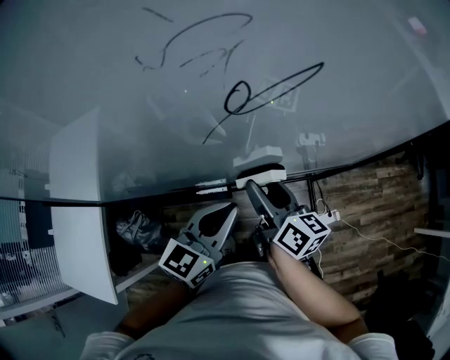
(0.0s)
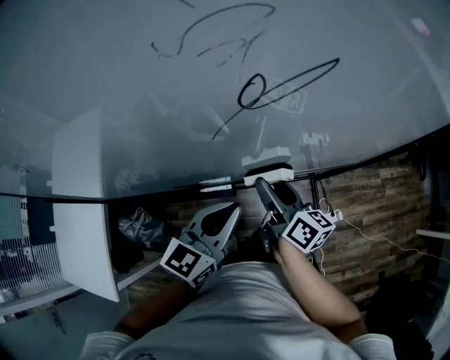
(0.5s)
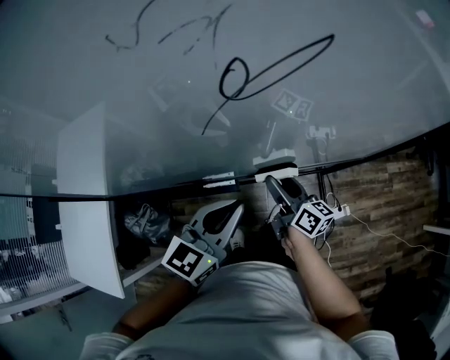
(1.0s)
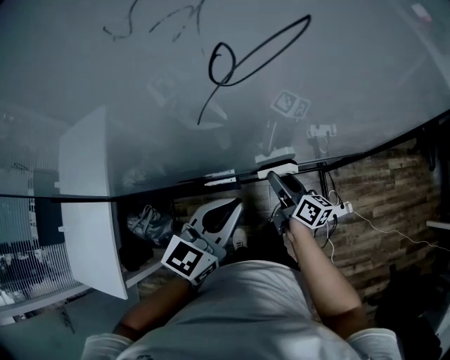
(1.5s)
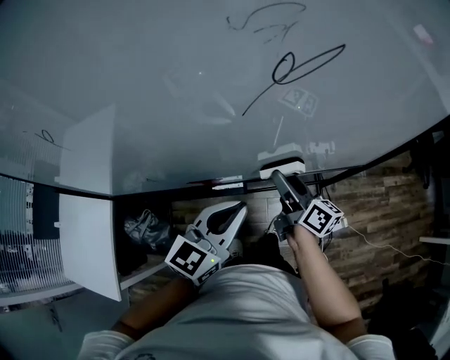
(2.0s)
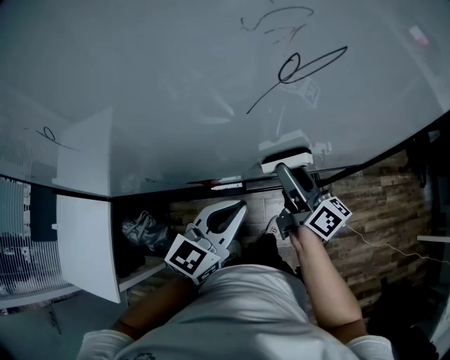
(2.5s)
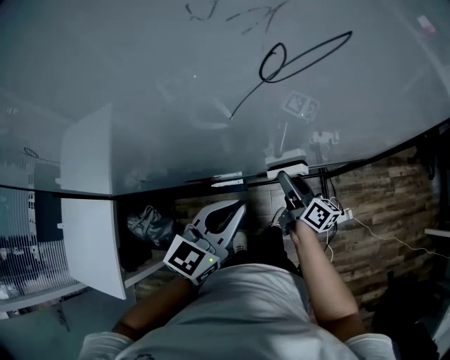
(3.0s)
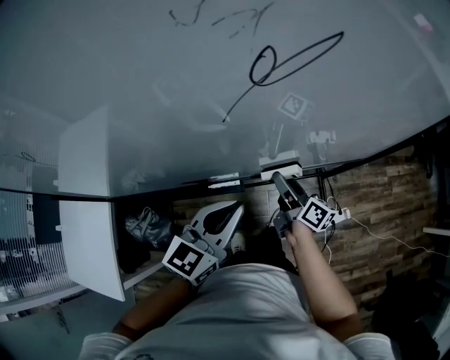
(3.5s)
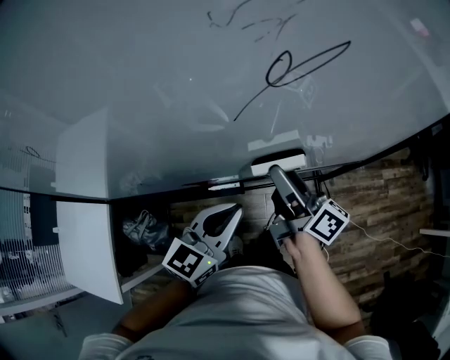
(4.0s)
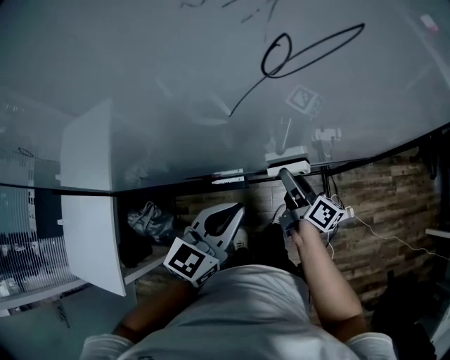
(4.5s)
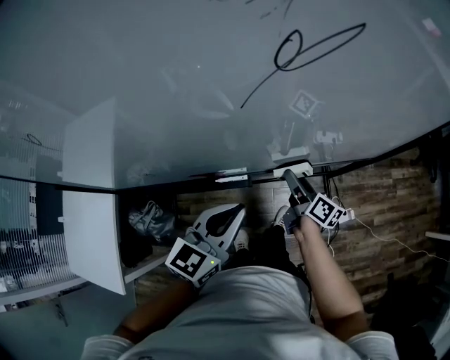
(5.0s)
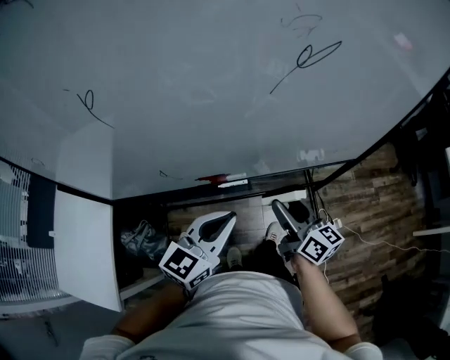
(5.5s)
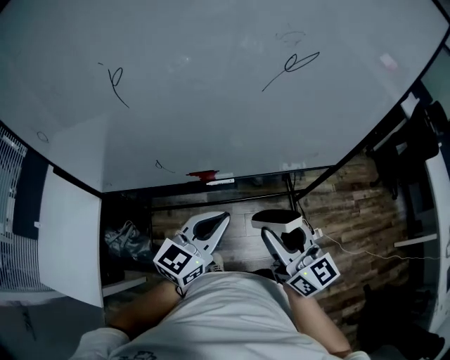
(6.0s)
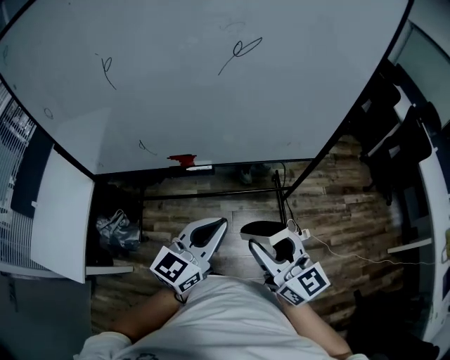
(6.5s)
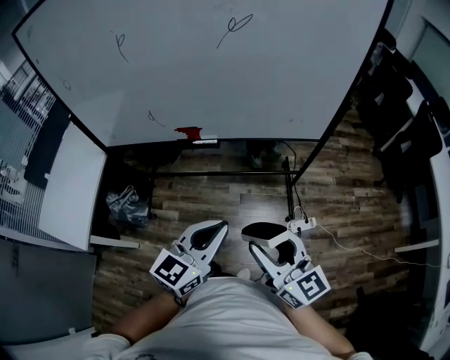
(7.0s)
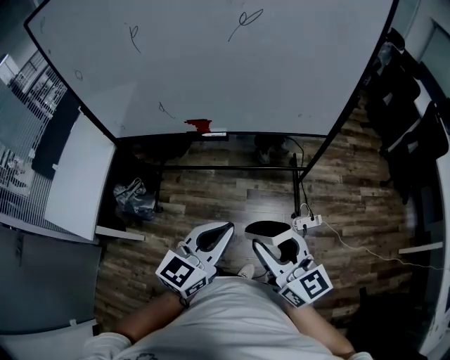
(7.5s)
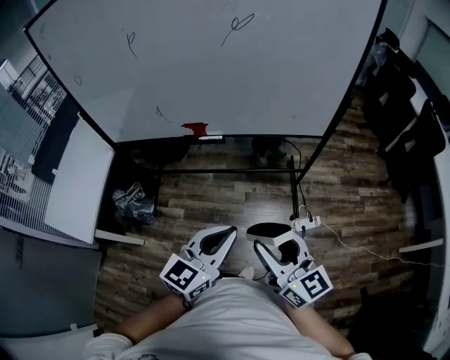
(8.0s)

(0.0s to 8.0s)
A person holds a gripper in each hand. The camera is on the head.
0.0s - 2.0s: The right gripper travels downward and back again, approximately 15 cm each way.
2.0s - 4.0s: The right gripper goes up and down, some 15 cm each way, reversing 2 times.
4.0s - 6.0s: The right gripper travels backward by approximately 25 cm, and rotates around the line of its fingers by roughly 40 degrees, counterclockwise from behind; the left gripper is displaced backward by some 15 cm.
6.0s - 8.0s: Both grippers move backward and to the right, approximately 30 cm.

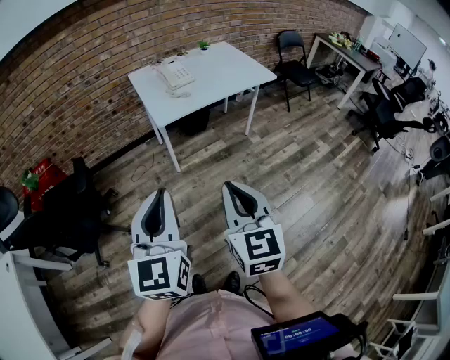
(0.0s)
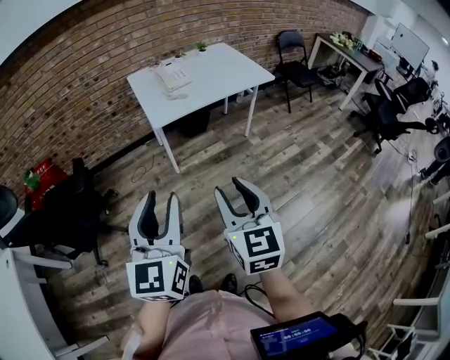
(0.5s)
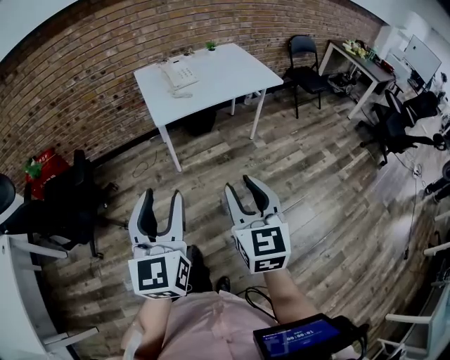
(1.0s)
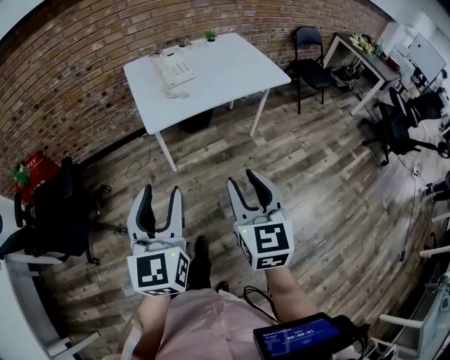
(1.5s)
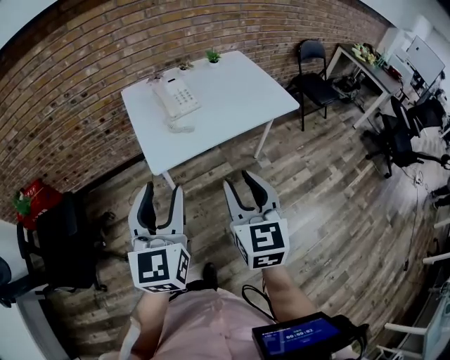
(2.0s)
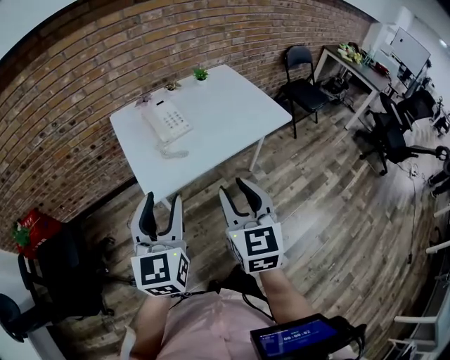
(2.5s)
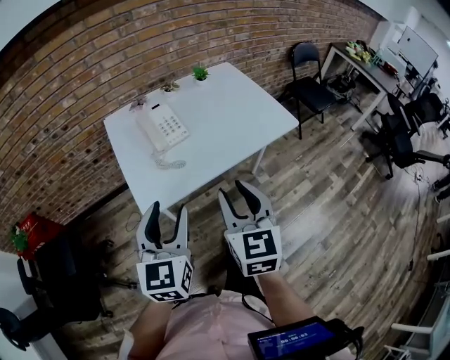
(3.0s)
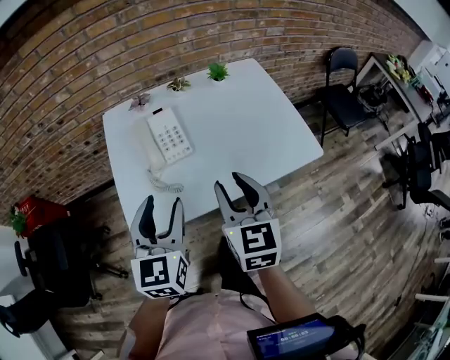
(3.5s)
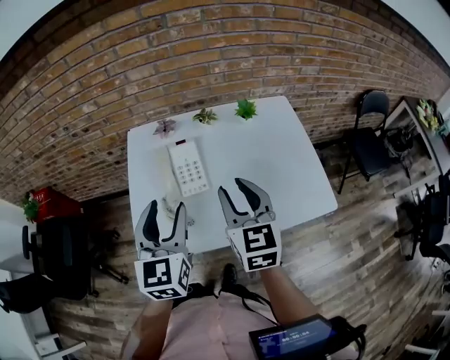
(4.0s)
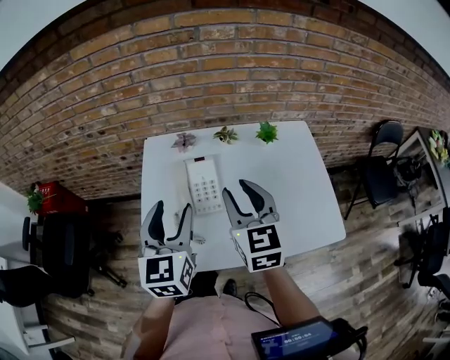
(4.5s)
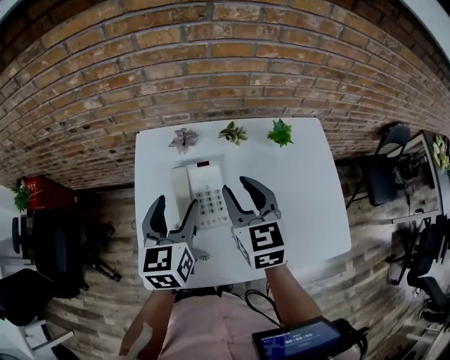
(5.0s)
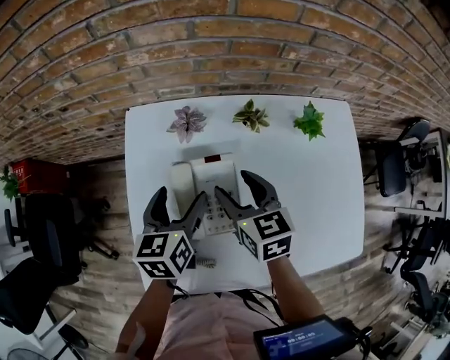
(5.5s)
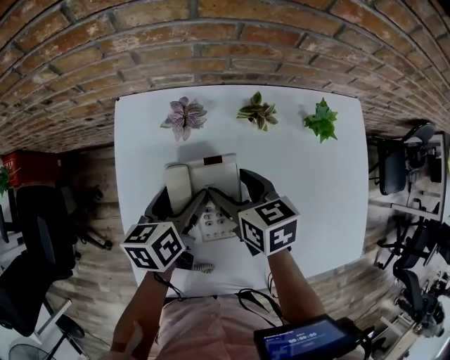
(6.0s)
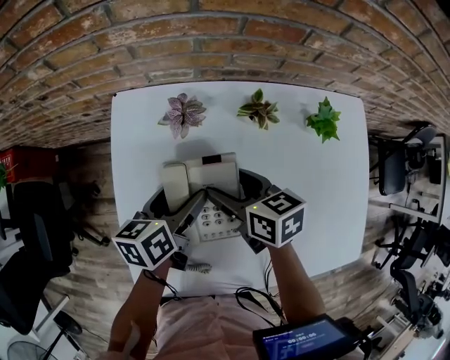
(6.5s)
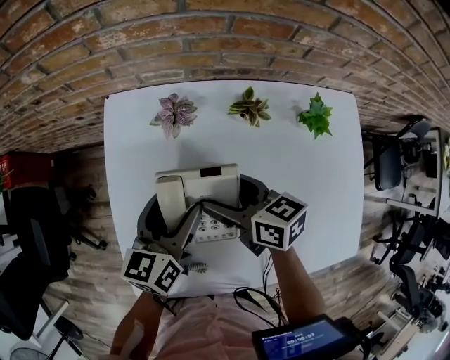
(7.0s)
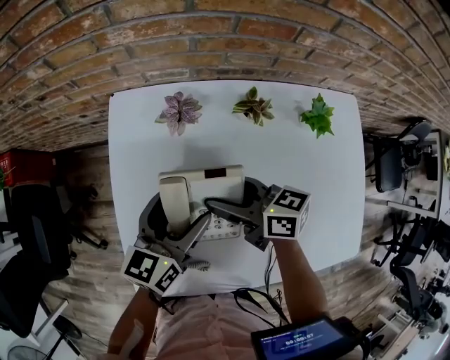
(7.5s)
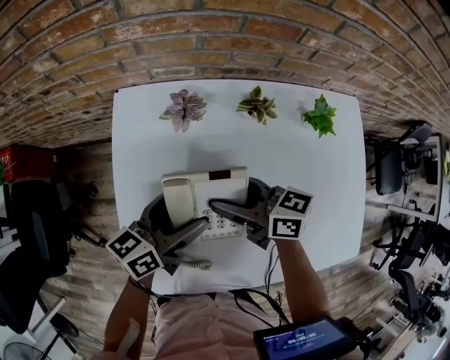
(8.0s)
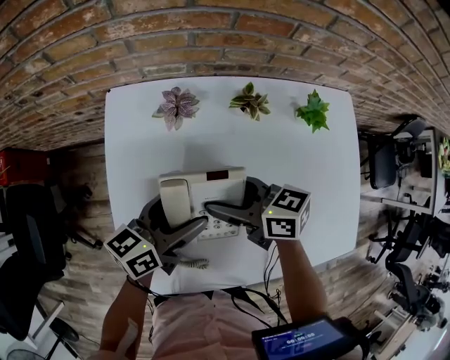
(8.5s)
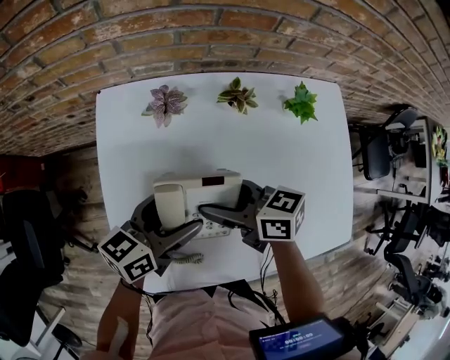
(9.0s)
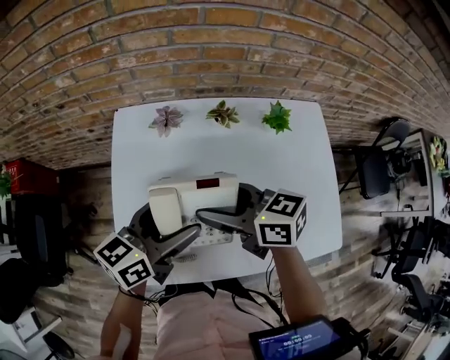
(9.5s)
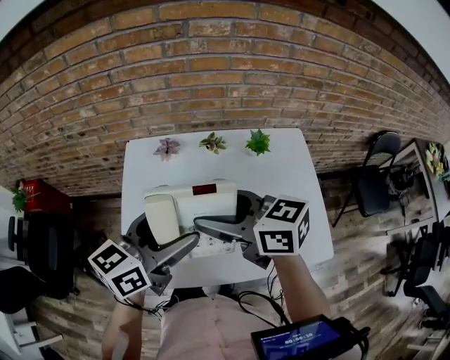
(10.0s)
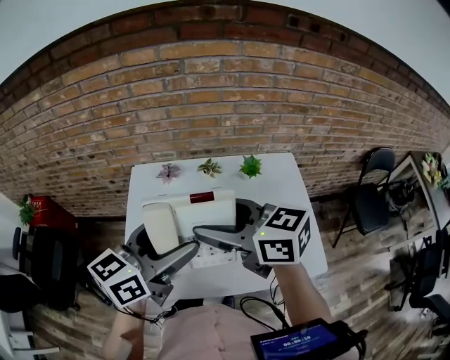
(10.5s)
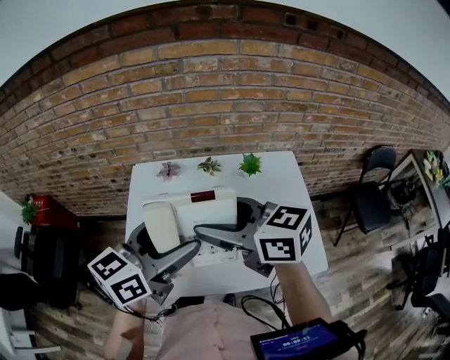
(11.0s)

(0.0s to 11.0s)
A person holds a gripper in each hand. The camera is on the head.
0.0s - 2.0s: Both grippers move forward, approximately 30 cm. The right gripper opens its fingers. The left gripper opens.
2.0s - 3.5s: Both grippers travel together forward, roughly 30 cm.
3.5s - 5.5s: The two grippers go roughly 35 cm forward and downward. The right gripper swivels some 30 degrees, and opens its fingers; the left gripper swivels roughly 30 degrees, and opens.
5.5s - 7.5s: The right gripper swivels approximately 40 degrees.
7.5s - 9.0s: The left gripper rotates approximately 20 degrees.
9.0s - 11.0s: The right gripper goes approximately 30 cm upward, and rotates some 30 degrees. Meanwhile the left gripper is displaced upward and backward by approximately 30 cm, and swivels some 20 degrees.

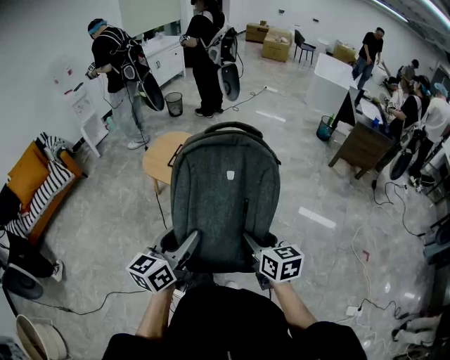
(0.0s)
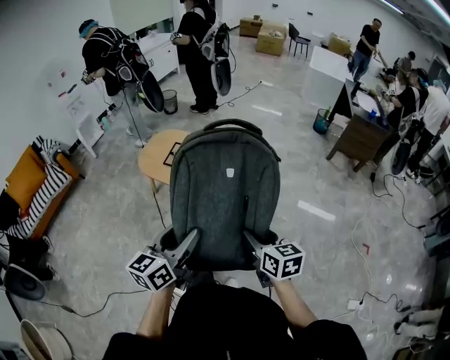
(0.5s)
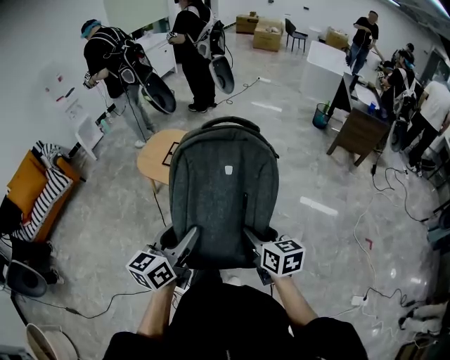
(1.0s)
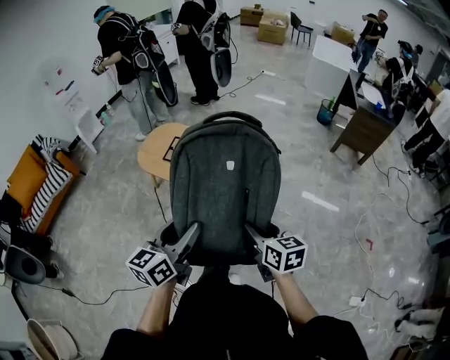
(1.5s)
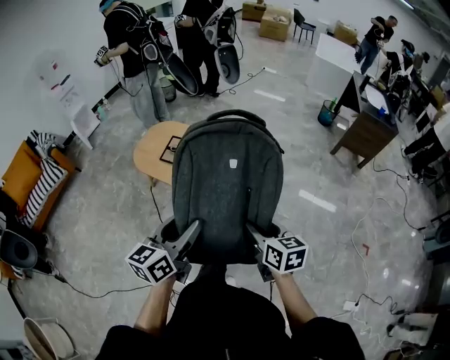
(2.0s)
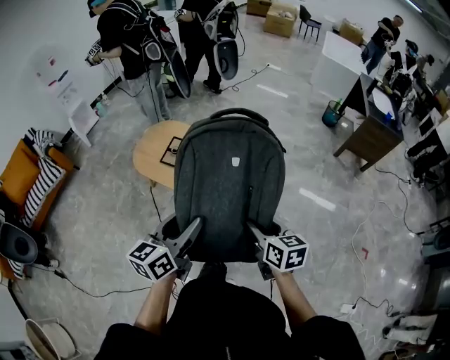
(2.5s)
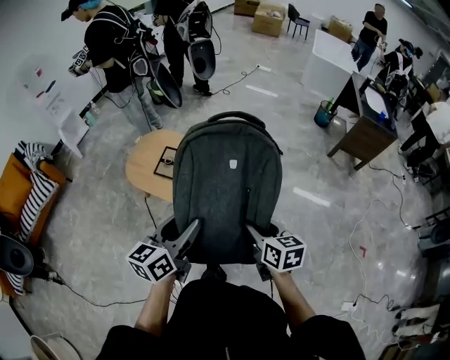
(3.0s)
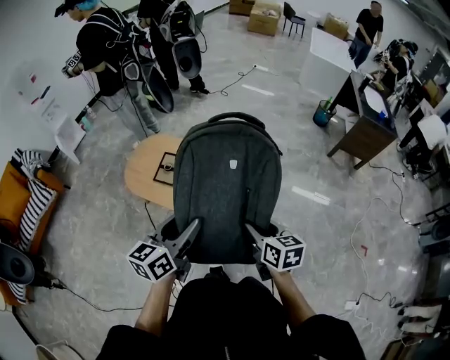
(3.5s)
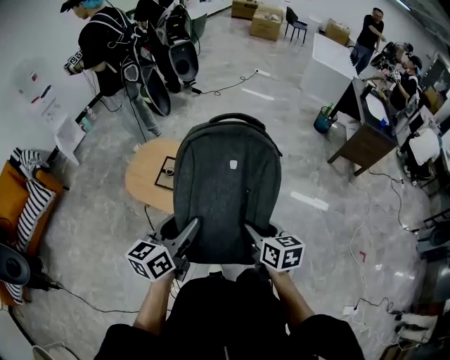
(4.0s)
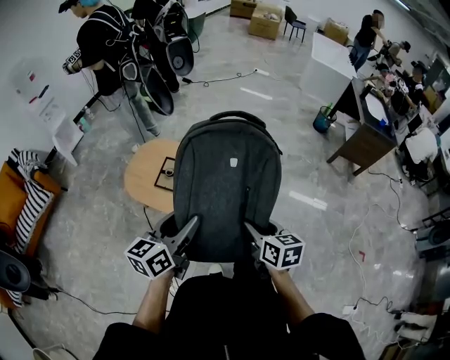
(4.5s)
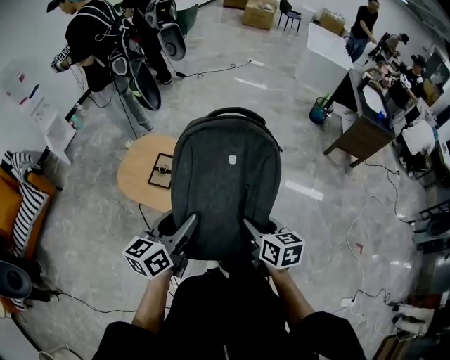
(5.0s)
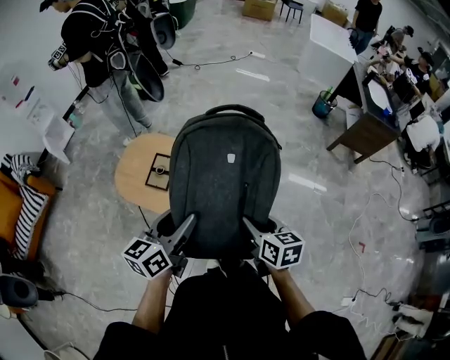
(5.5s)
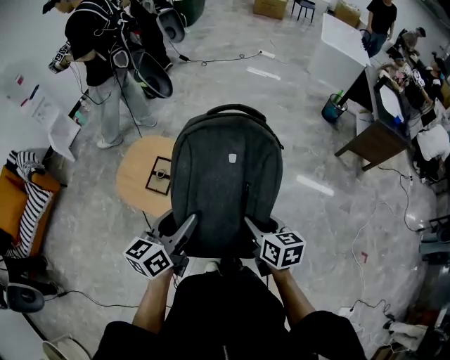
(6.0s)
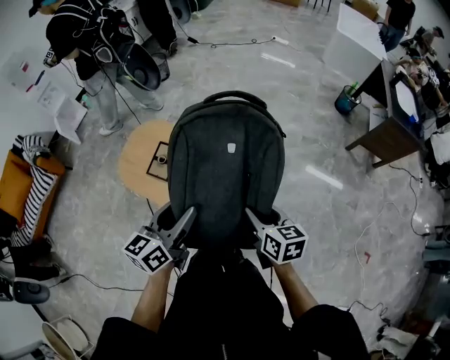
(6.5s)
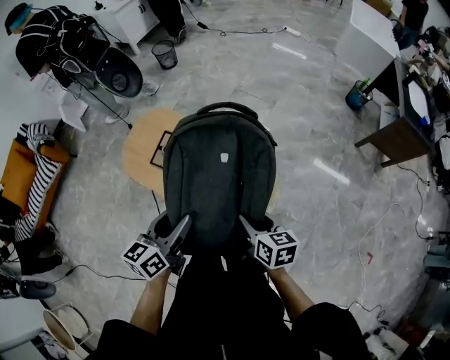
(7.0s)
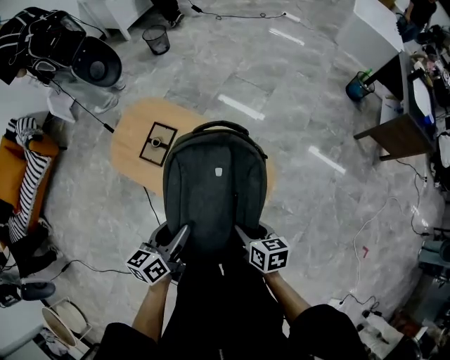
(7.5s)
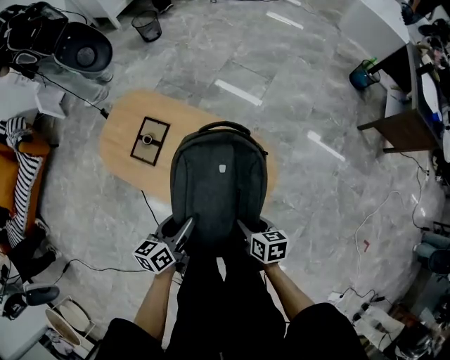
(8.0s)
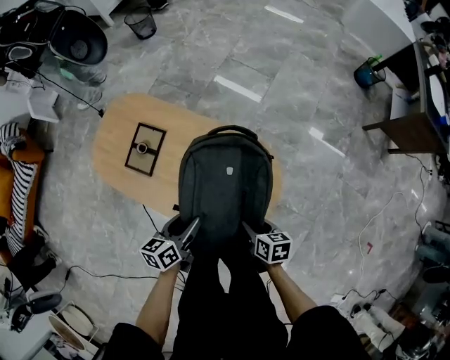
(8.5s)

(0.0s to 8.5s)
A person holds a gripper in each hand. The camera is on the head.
0.0s - 2.0s: The grippers both shift forward by approximately 10 cm.
2.0s - 4.0s: Both grippers travel together forward, some 20 cm.
4.0s - 6.5s: Both grippers move forward and to the right, roughly 15 cm.
6.5s - 8.5s: Both grippers move downward, approximately 30 cm. The left gripper turns by some 30 degrees. The right gripper changes its angle by some 30 degrees.
